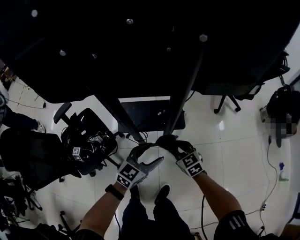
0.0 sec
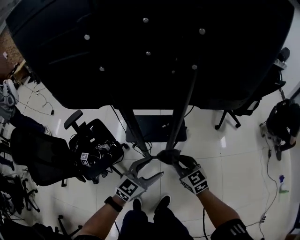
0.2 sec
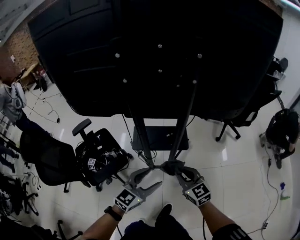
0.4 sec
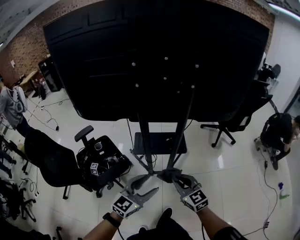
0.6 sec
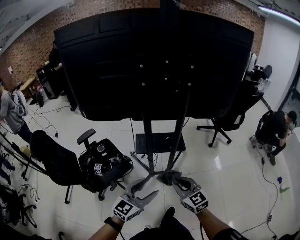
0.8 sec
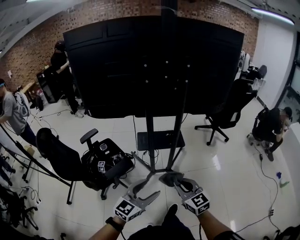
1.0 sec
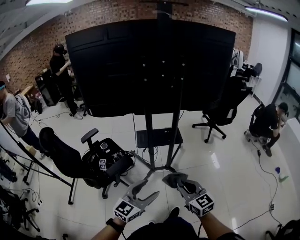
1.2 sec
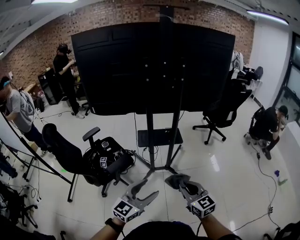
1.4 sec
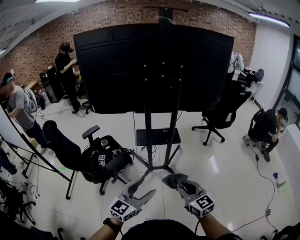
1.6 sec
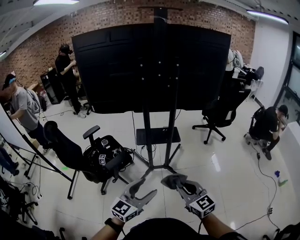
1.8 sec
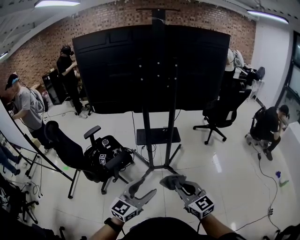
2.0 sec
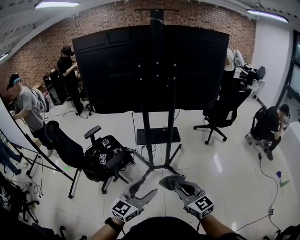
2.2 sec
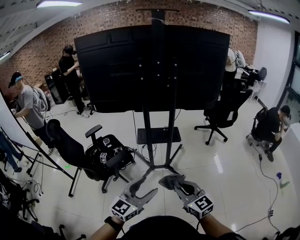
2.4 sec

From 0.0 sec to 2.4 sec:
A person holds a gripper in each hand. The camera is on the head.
From 0.0 sec to 1.2 sec: The pair of grippers is taken backward, some 40 cm. Both grippers move upward, some 25 cm. The right gripper turns by approximately 20 degrees.
From 1.2 sec to 2.4 sec: The right gripper is displaced backward by roughly 10 cm. The left gripper heads backward and to the right, covering roughly 10 cm.

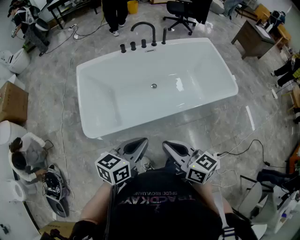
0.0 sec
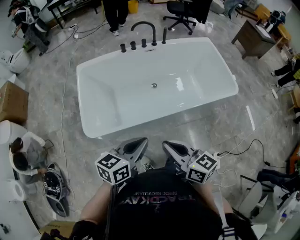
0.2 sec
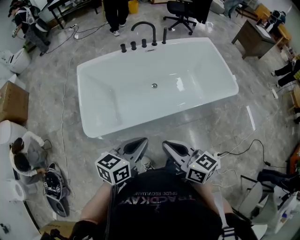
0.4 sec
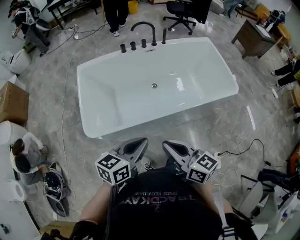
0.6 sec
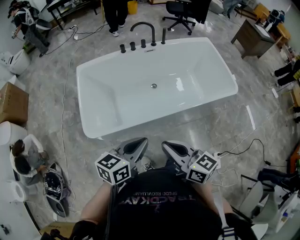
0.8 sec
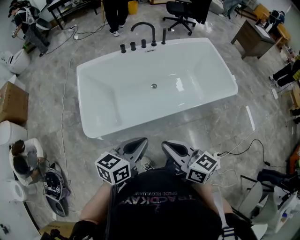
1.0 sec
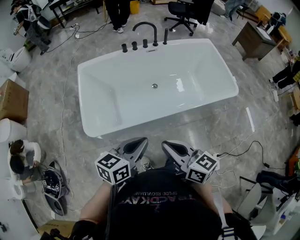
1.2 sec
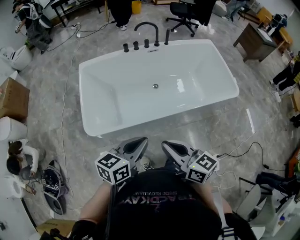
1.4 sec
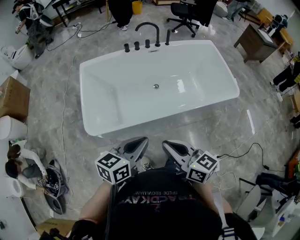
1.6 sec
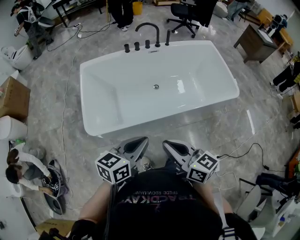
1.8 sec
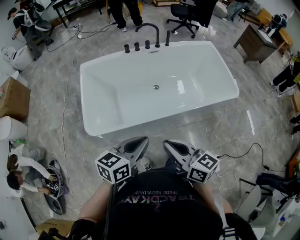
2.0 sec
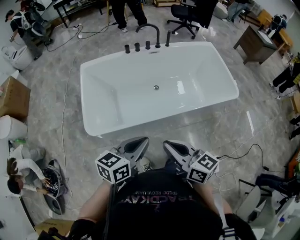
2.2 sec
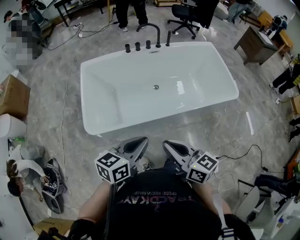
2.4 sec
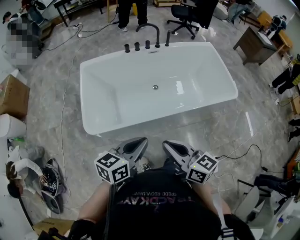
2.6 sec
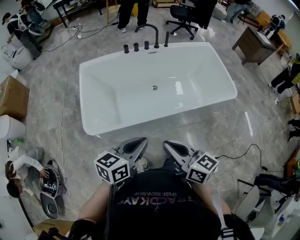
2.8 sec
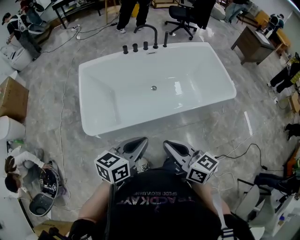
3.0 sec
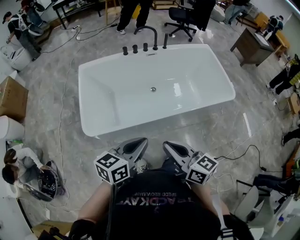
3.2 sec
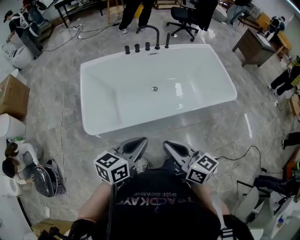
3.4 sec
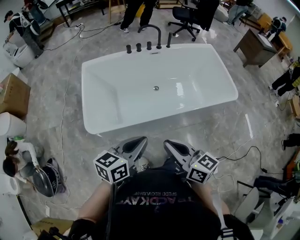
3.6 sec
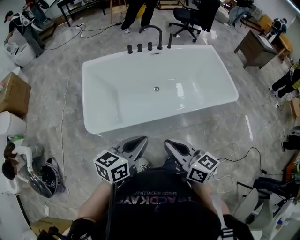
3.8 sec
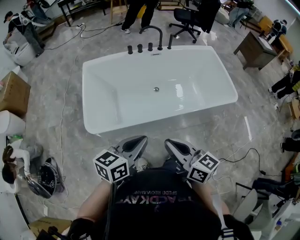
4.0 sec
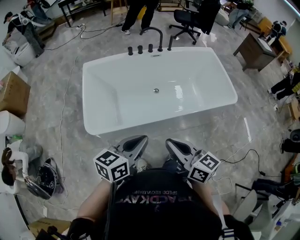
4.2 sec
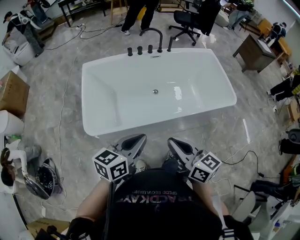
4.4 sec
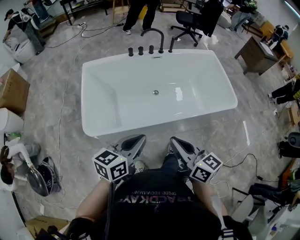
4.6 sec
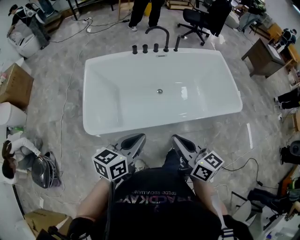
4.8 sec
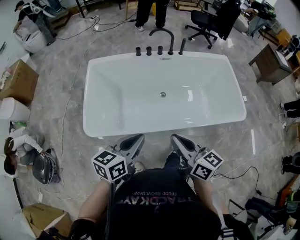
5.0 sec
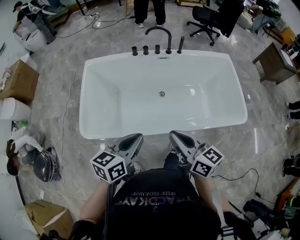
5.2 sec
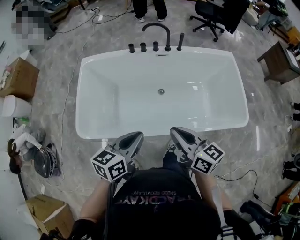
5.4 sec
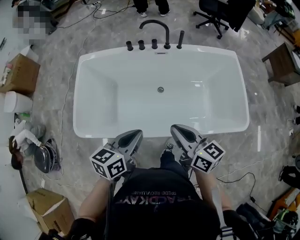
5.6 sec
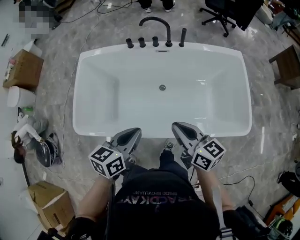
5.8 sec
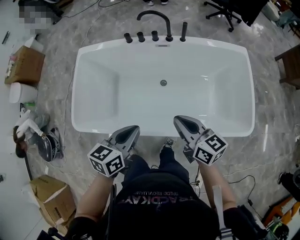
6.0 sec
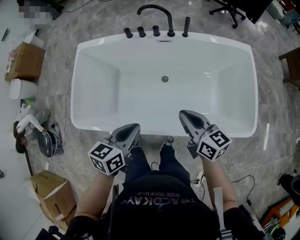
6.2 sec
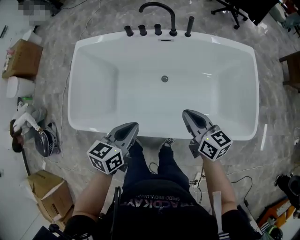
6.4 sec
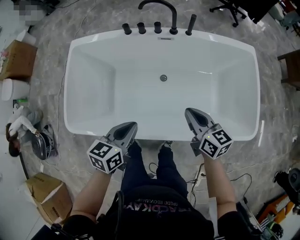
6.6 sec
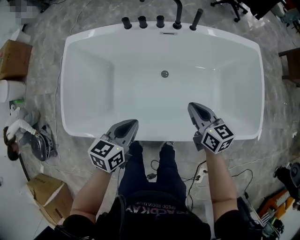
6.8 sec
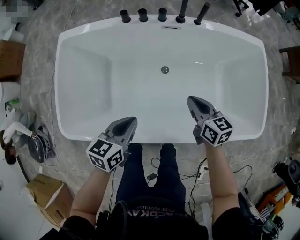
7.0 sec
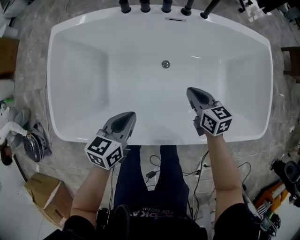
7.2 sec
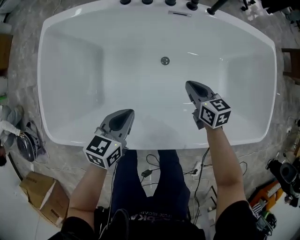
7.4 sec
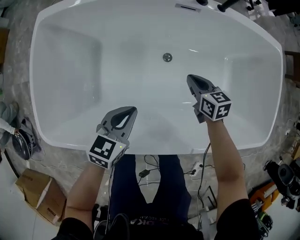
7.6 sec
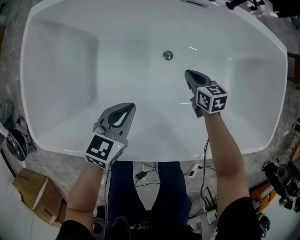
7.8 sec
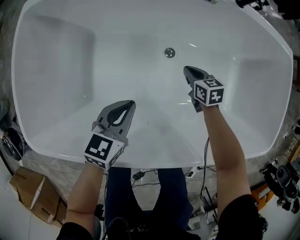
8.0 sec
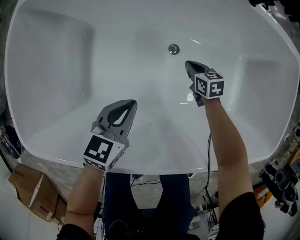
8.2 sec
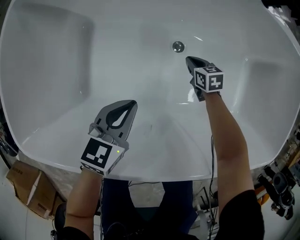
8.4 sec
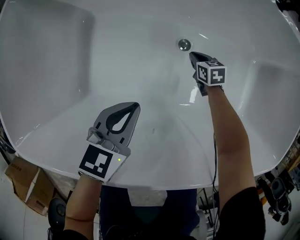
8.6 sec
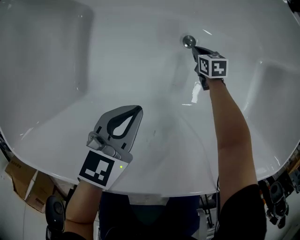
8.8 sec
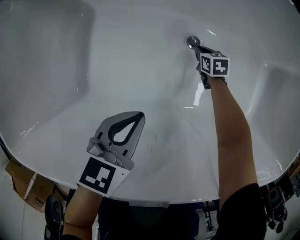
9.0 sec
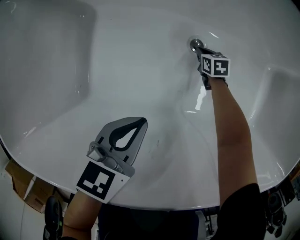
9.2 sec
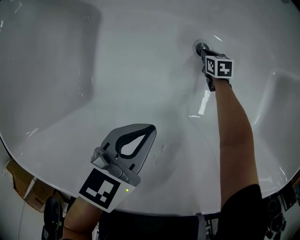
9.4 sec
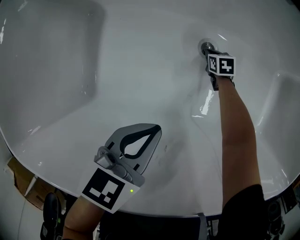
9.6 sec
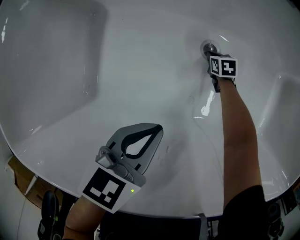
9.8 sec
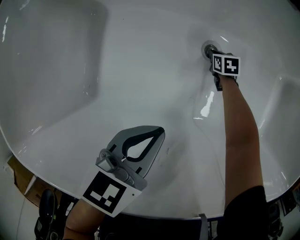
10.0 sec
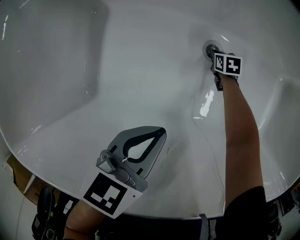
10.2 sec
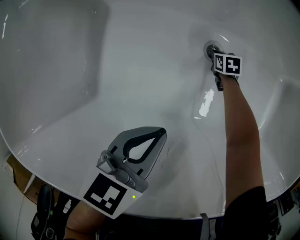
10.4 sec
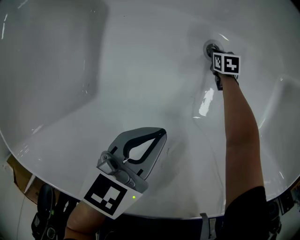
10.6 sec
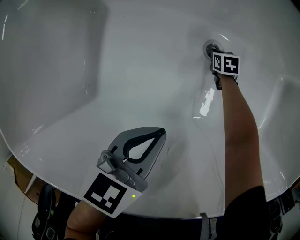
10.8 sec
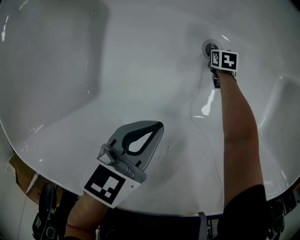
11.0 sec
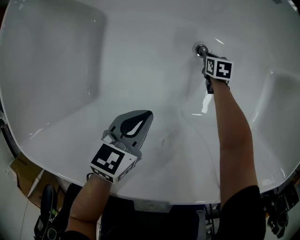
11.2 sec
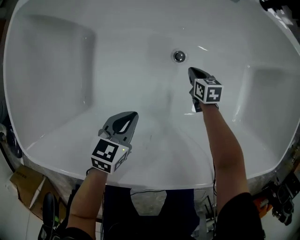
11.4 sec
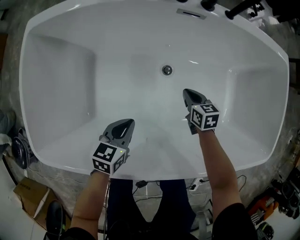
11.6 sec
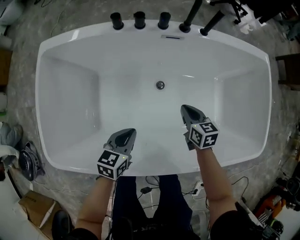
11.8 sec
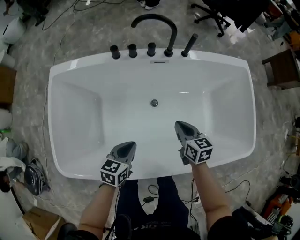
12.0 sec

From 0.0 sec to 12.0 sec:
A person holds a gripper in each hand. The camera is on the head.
From 0.0 sec to 3.0 sec: Both grippers stay about where they are.
From 3.0 sec to 4.4 sec: The grippers stay close to where they were, moving slightly.
From 4.4 sec to 6.0 sec: The right gripper travels forward and to the right by about 25 cm, while the left gripper goes approximately 15 cm forward, to the right and downward, and rotates some 20 degrees.
From 6.0 sec to 7.6 sec: The left gripper moves downward and forward, some 20 cm; the right gripper travels downward and forward by approximately 30 cm, and turns by approximately 30 degrees.
From 7.6 sec to 9.0 sec: The left gripper shifts some 15 cm downward. Meanwhile the right gripper moves downward, roughly 35 cm, and swivels approximately 20 degrees.
From 9.0 sec to 10.4 sec: The right gripper goes approximately 5 cm downward.
From 10.4 sec to 12.0 sec: The left gripper goes approximately 10 cm upward. The right gripper heads upward, covering about 50 cm, and tilts its fingers some 30 degrees upward.

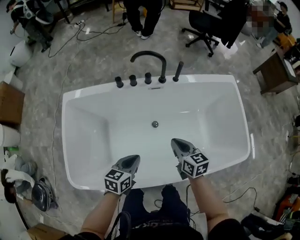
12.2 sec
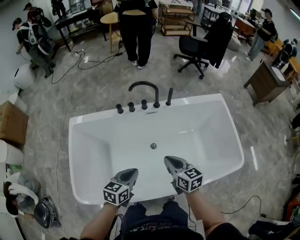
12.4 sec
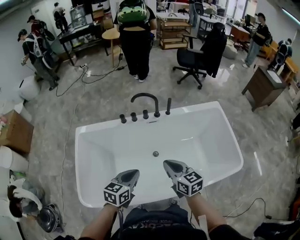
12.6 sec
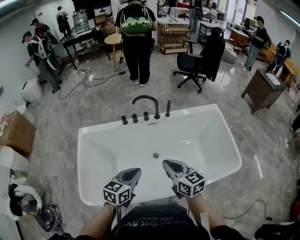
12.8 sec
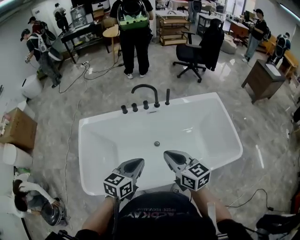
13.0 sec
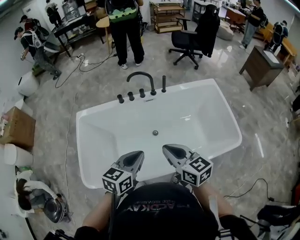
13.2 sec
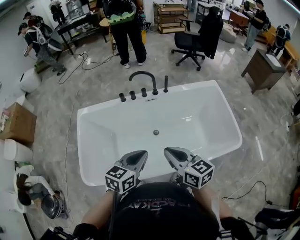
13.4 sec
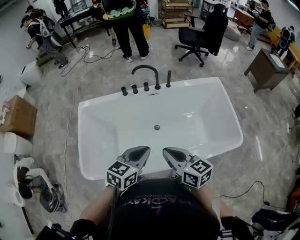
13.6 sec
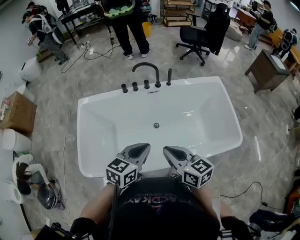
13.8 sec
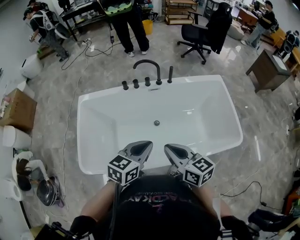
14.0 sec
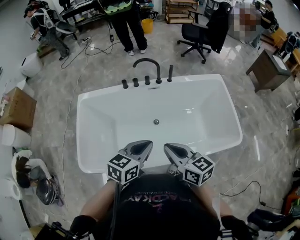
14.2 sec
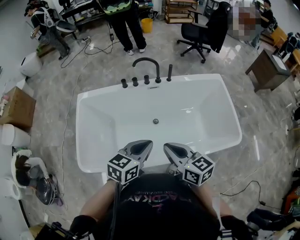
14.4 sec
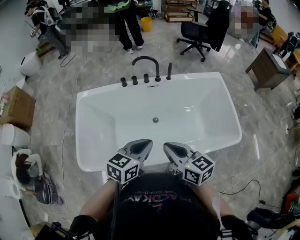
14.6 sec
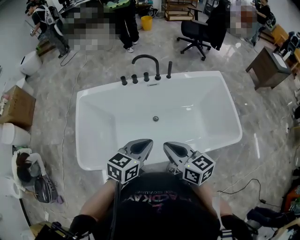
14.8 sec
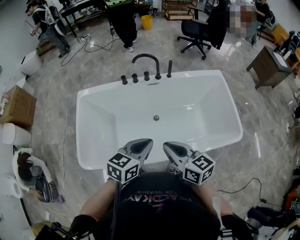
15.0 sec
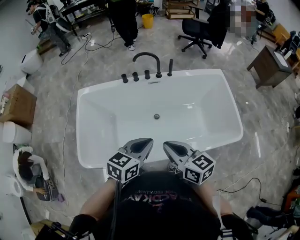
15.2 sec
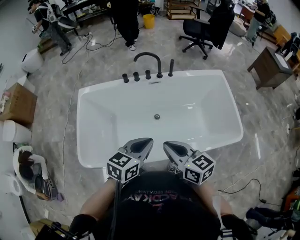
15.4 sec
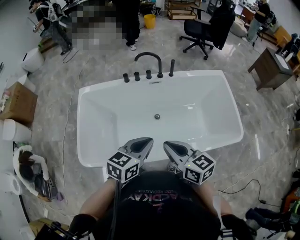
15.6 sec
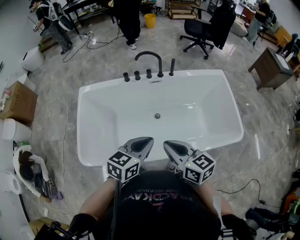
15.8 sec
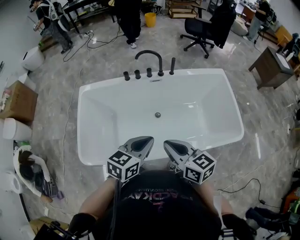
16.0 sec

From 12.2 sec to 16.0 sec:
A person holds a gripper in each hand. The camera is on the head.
From 12.2 sec to 13.4 sec: The left gripper is displaced upward by roughly 20 cm; the right gripper goes approximately 25 cm upward and backward.
From 13.4 sec to 14.8 sec: The grippers stay close to where they were, moving slightly.
From 14.8 sec to 16.0 sec: Both grippers stay put.

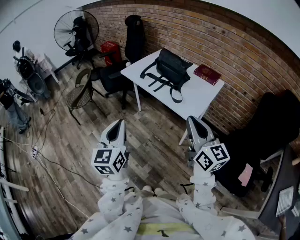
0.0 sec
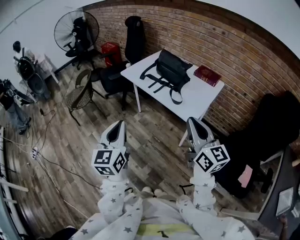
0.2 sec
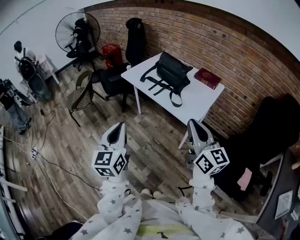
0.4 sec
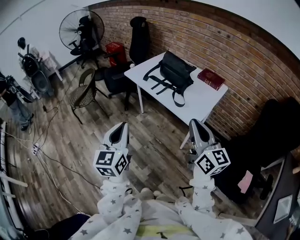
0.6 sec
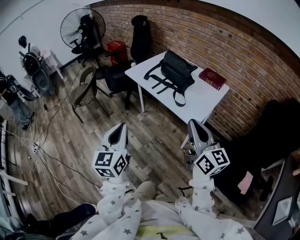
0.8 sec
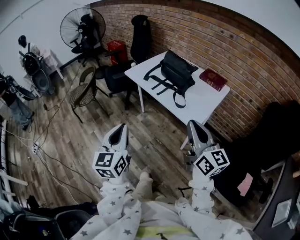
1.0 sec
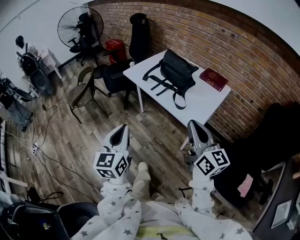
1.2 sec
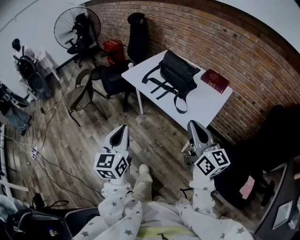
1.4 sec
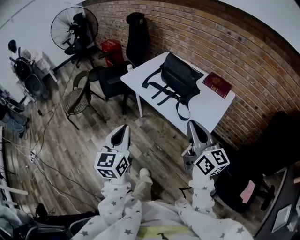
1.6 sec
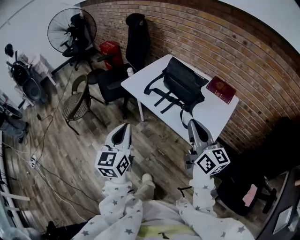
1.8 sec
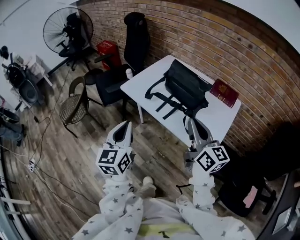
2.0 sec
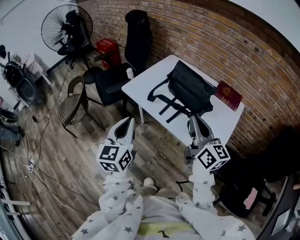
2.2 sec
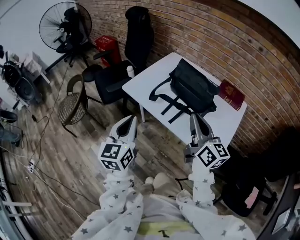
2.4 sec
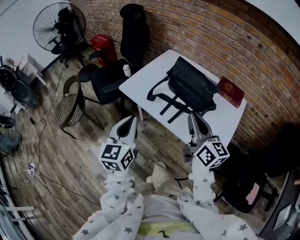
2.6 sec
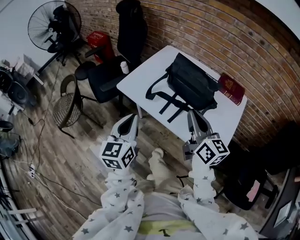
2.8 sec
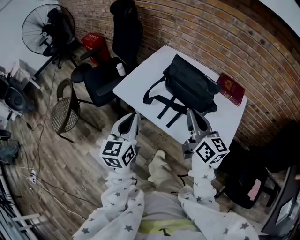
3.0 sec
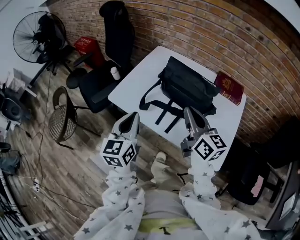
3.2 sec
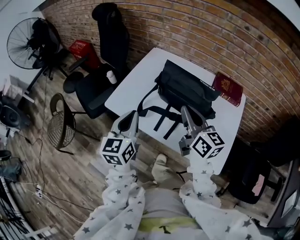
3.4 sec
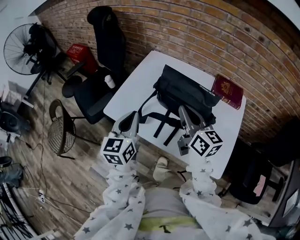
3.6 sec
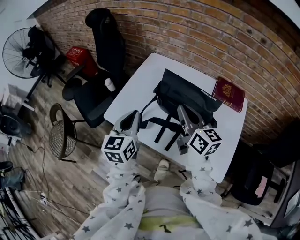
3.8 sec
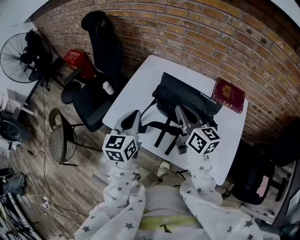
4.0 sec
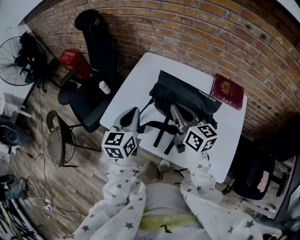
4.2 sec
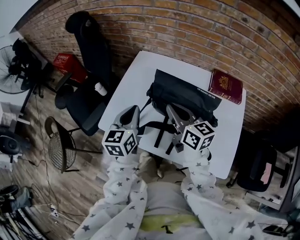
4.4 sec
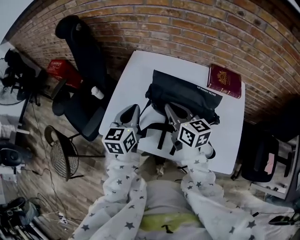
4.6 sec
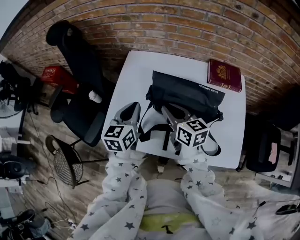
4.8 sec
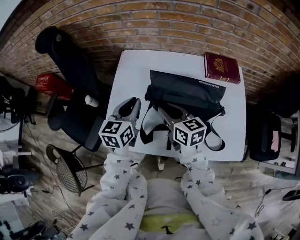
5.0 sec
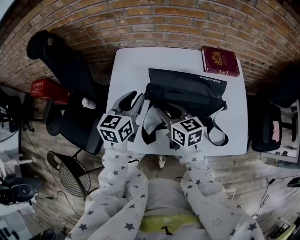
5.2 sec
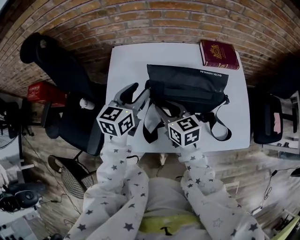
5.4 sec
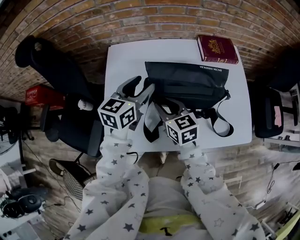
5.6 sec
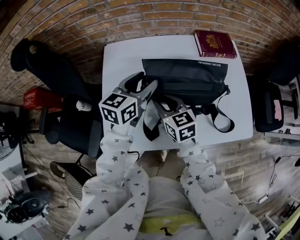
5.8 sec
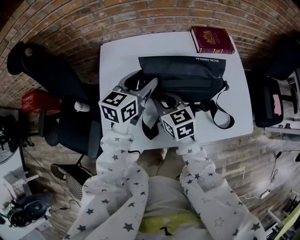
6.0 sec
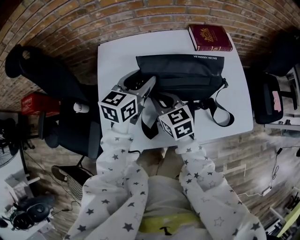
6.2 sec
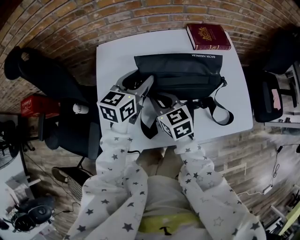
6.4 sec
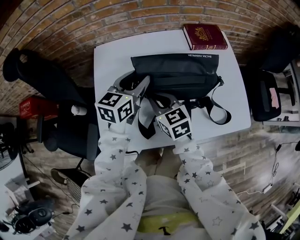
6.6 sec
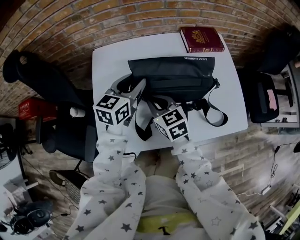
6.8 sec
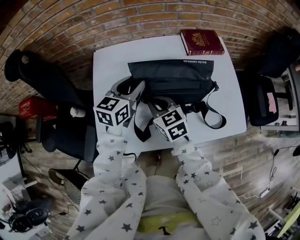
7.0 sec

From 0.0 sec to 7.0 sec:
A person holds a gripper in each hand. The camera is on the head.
From 0.0 sec to 1.4 sec: The two grippers go some 10 cm forward.
From 1.4 sec to 2.8 sec: Both grippers travel together forward, about 30 cm.
From 2.8 sec to 4.2 sec: Both grippers move forward, some 25 cm.
From 4.2 sec to 5.6 sec: The left gripper changes place by roughly 15 cm, turns by approximately 40 degrees, and opens. Meanwhile the right gripper heads downward, covering some 15 cm, changes its angle by about 30 degrees, and opens its fingers.
From 5.6 sec to 7.0 sec: The right gripper closes its fingers.
